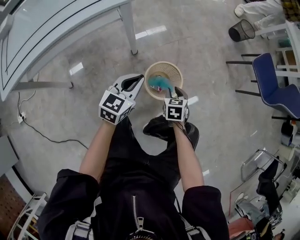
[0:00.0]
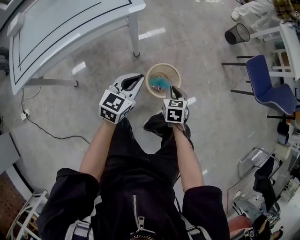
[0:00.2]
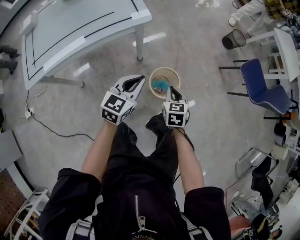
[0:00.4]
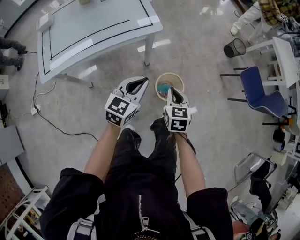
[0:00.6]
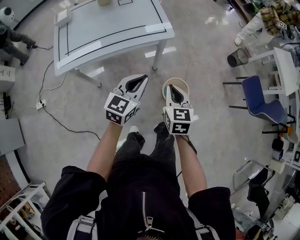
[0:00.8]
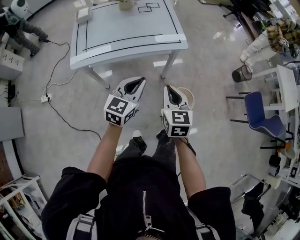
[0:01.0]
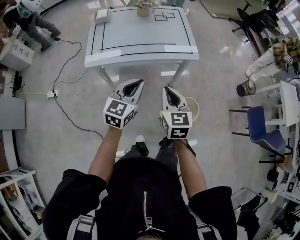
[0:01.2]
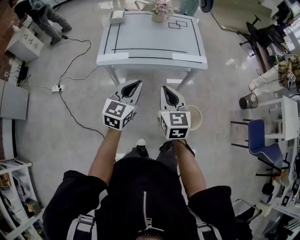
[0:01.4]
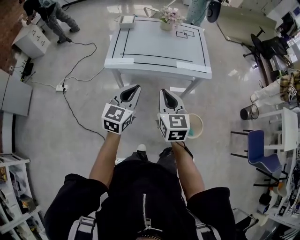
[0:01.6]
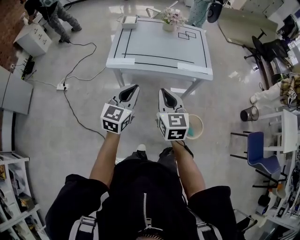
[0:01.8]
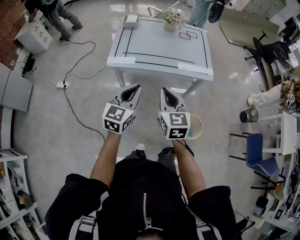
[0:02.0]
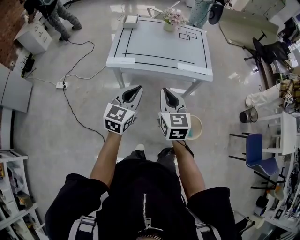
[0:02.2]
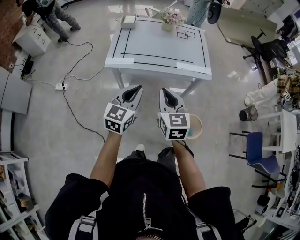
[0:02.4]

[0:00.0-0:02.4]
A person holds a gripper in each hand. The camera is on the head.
0:00.0 to 0:01.2: Both grippers move upward, roughly 50 cm. The right gripper angles its fingers upward, by approximately 30 degrees, and closes, while the left gripper swivels roughly 30 degrees.
0:01.2 to 0:02.4: Both grippers travel together to the left, roughly 10 cm.

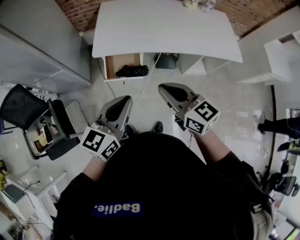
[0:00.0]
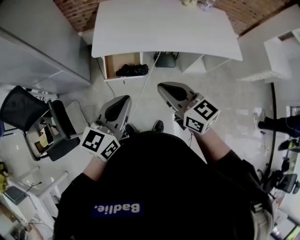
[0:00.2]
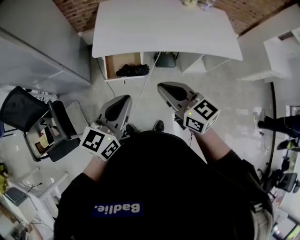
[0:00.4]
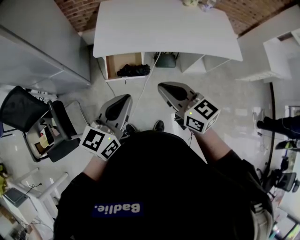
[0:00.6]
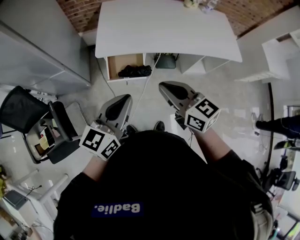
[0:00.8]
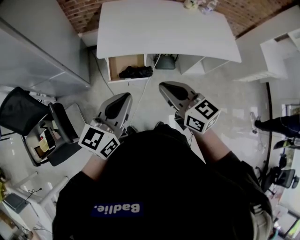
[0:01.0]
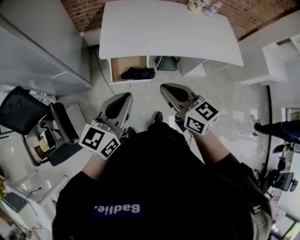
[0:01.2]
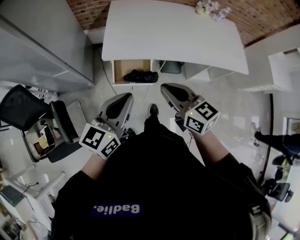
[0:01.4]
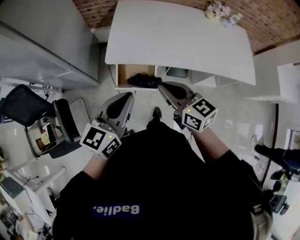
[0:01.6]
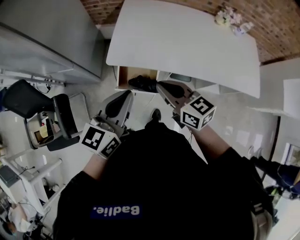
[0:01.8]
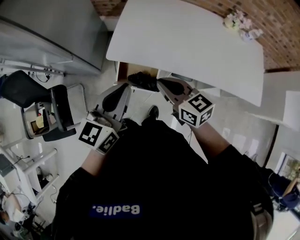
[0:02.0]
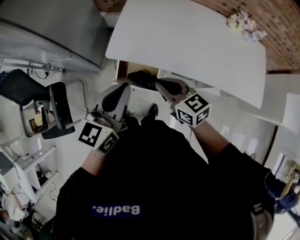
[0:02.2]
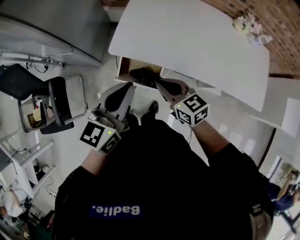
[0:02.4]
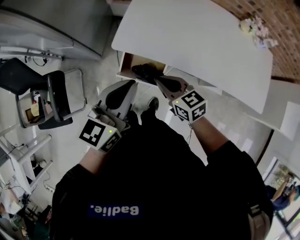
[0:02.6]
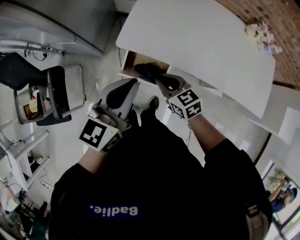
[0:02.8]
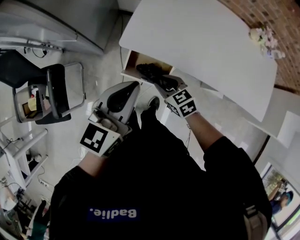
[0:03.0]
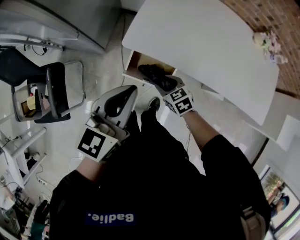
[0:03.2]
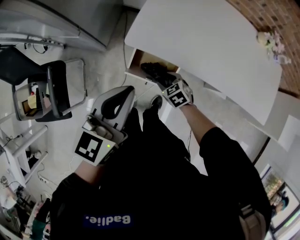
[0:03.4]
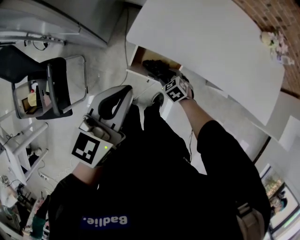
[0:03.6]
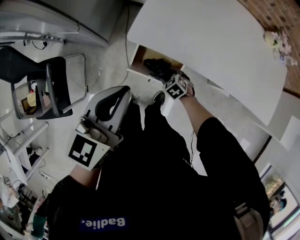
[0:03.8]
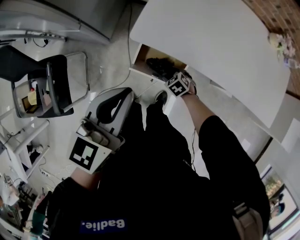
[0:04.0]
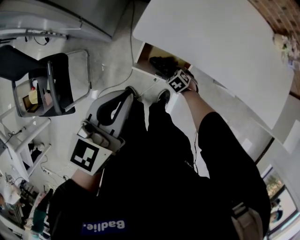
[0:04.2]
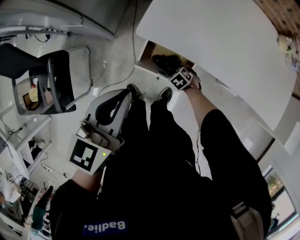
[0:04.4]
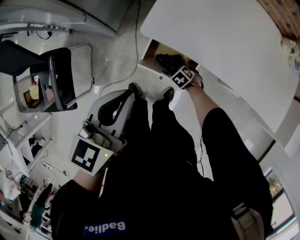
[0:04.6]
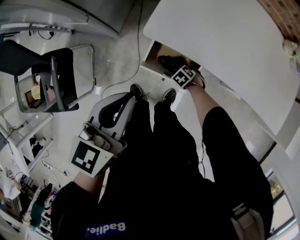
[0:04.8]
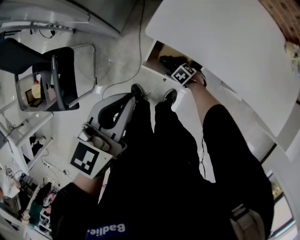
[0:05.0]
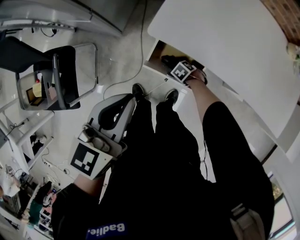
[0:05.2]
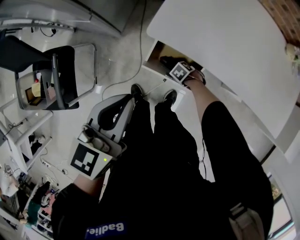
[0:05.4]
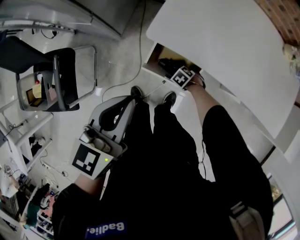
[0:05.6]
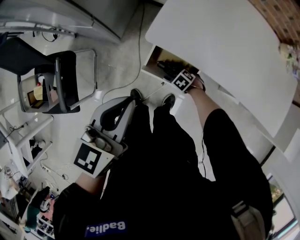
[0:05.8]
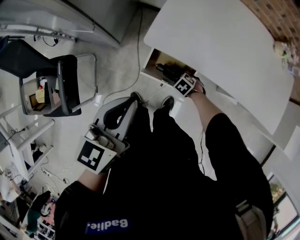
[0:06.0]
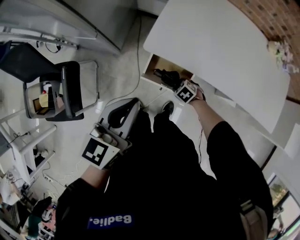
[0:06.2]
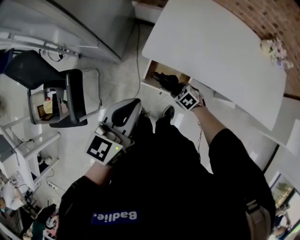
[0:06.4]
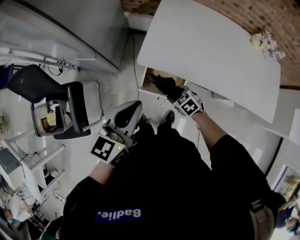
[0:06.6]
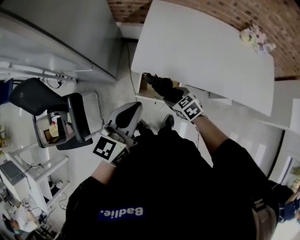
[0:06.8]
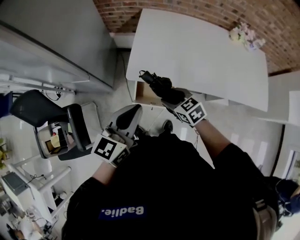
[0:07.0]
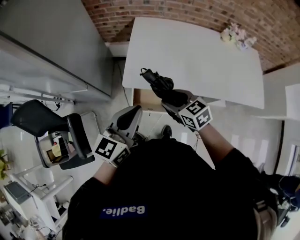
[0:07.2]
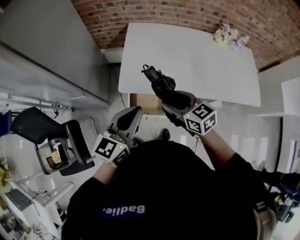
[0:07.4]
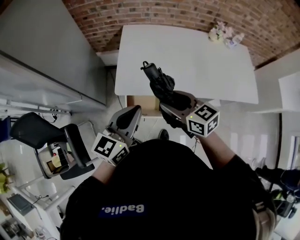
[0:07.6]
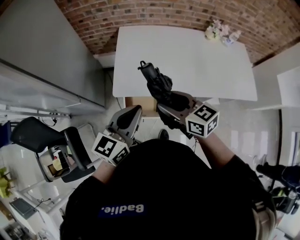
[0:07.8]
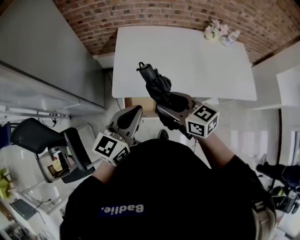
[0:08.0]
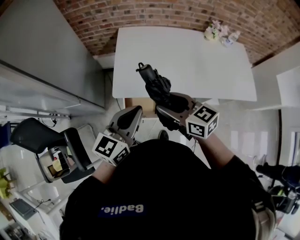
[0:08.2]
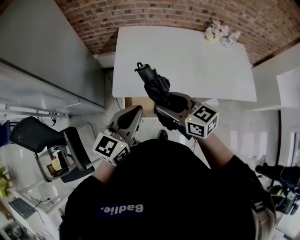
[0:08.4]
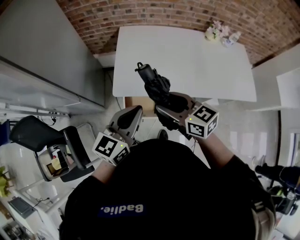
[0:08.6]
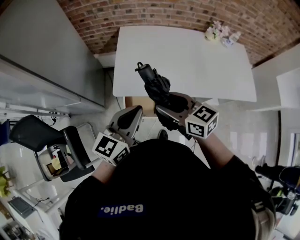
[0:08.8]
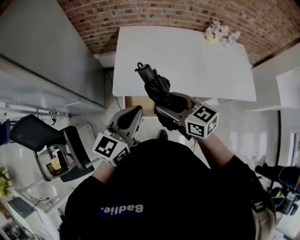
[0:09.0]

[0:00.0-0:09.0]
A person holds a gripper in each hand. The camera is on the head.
0:00.0 to 0:01.6: Both grippers move forward and to the left, roughly 15 cm.
0:01.6 to 0:03.0: The right gripper moves downward and forward, roughly 25 cm, angles its fingers downward, by approximately 30 degrees, and opens its fingers, while the left gripper goes roughly 15 cm forward and downward.
0:03.0 to 0:04.4: The left gripper shifts by about 10 cm. The right gripper is displaced downward by roughly 25 cm, points its fingers approximately 30 degrees further downward, and opens.
0:04.4 to 0:06.0: The grippers make only small movements.
0:06.0 to 0:07.6: The left gripper goes roughly 10 cm upward, and turns by some 30 degrees. Meanwhile the right gripper goes some 50 cm upward, and tips its fingers upward by approximately 60 degrees.
0:07.6 to 0:09.0: There are only small adjustments of the grippers.

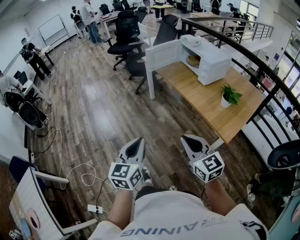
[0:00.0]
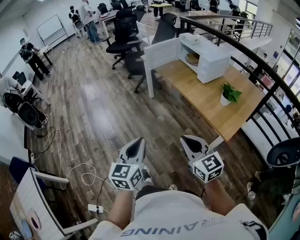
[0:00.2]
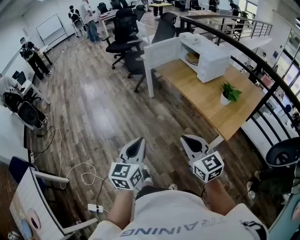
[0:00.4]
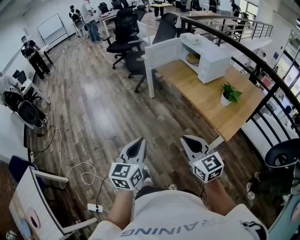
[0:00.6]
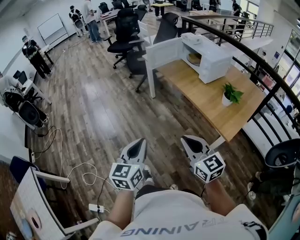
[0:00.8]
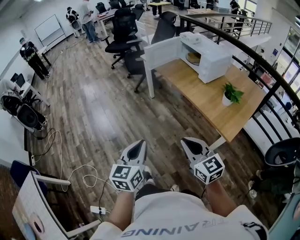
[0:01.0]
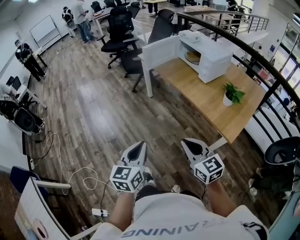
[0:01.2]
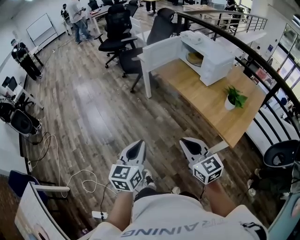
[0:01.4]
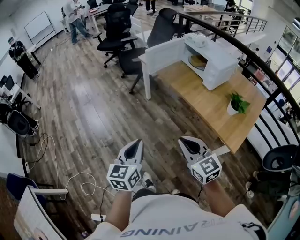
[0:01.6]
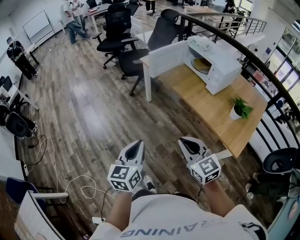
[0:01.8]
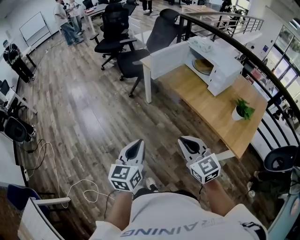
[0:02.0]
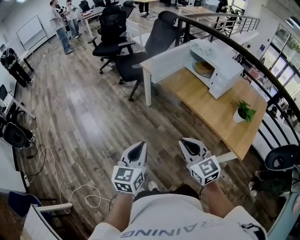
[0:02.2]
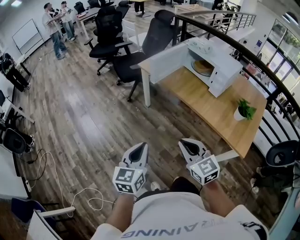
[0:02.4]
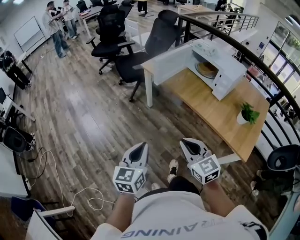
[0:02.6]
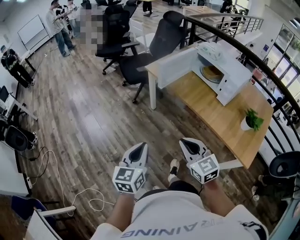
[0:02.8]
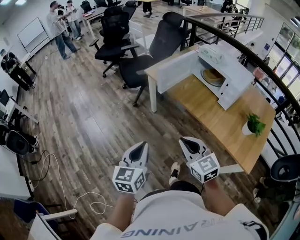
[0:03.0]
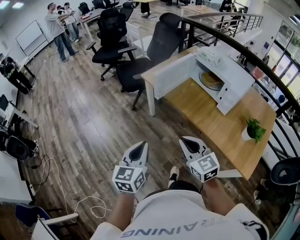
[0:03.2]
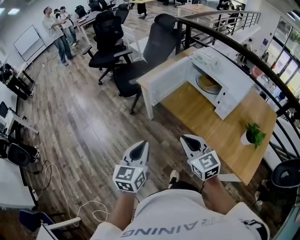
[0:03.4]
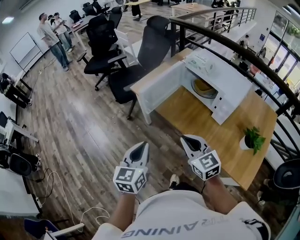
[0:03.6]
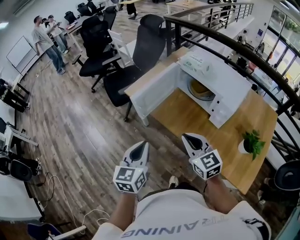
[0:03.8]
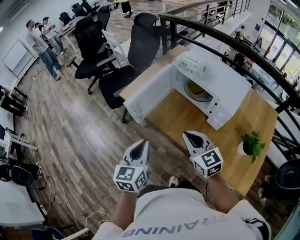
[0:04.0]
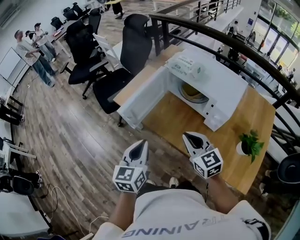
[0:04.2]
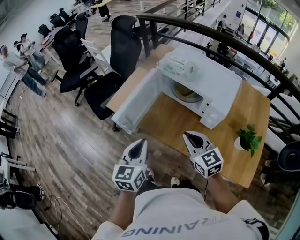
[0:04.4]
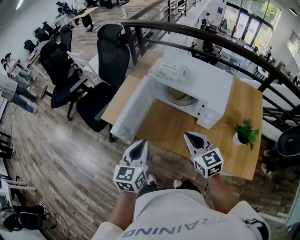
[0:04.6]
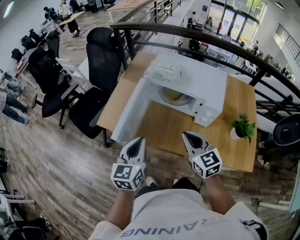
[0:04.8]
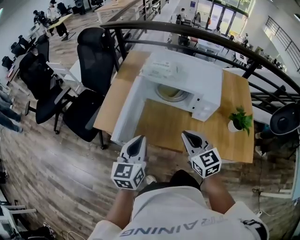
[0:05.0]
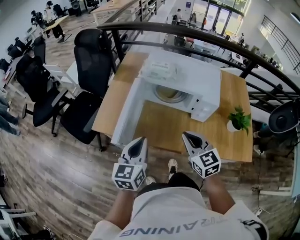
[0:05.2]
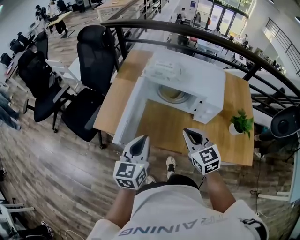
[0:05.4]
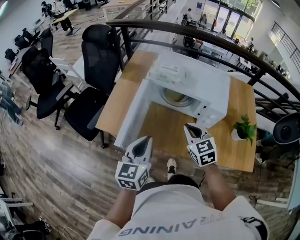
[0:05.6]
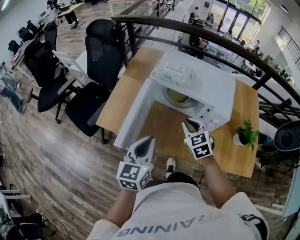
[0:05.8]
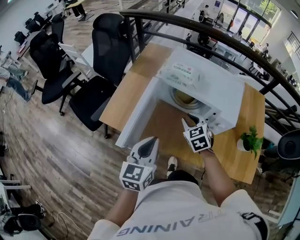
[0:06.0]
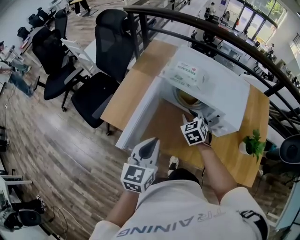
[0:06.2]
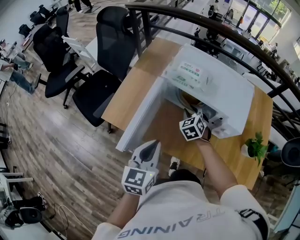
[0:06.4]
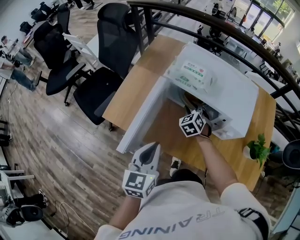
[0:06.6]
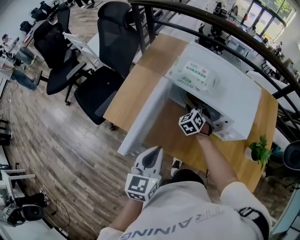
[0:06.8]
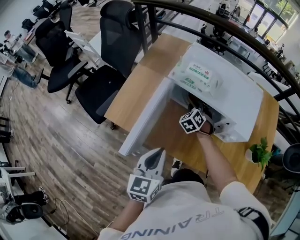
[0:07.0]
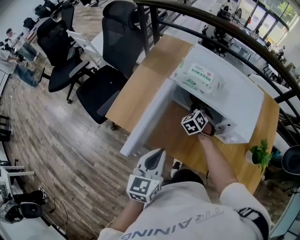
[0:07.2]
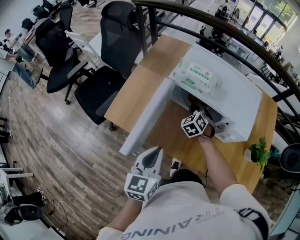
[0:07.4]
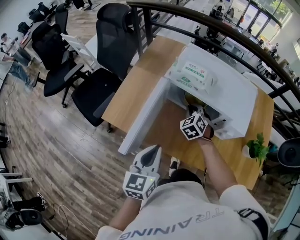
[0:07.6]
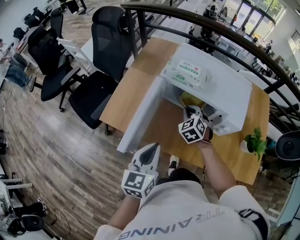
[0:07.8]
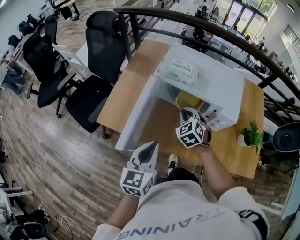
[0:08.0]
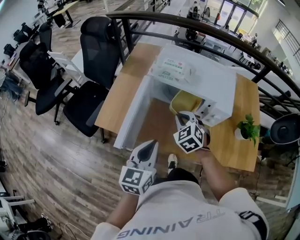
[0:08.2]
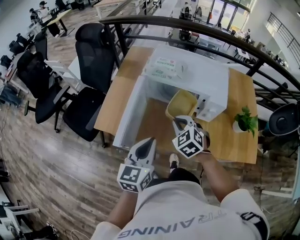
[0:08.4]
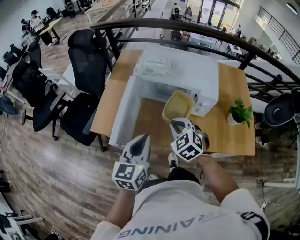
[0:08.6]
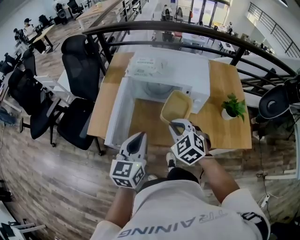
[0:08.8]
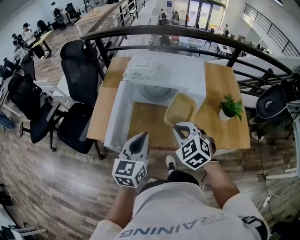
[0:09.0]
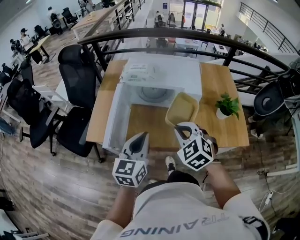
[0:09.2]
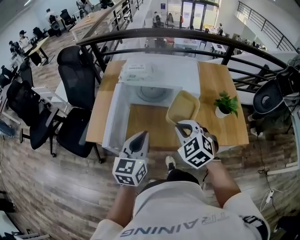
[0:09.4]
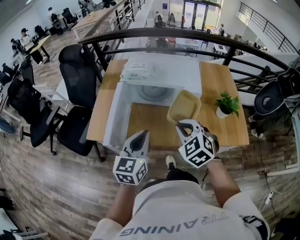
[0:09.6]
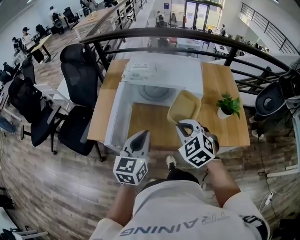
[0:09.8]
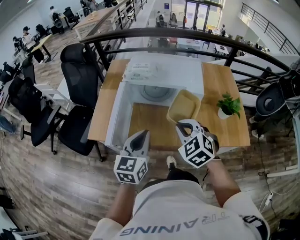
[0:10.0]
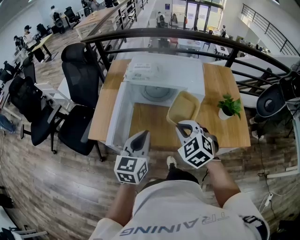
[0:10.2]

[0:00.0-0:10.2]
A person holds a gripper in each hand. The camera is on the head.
0:00.0 to 0:01.4: Both grippers move forward, roughly 10 cm.
0:01.4 to 0:03.0: The grippers both shift forward and to the left by about 30 cm.
0:03.0 to 0:04.4: Both grippers move forward and to the right, some 35 cm.
0:04.4 to 0:05.8: The left gripper heads forward, covering about 10 cm; the right gripper travels forward and downward by about 15 cm, and changes its angle by about 30 degrees.
0:05.8 to 0:07.2: The left gripper moves approximately 5 cm. The right gripper moves forward and downward, approximately 20 cm, and swivels roughly 30 degrees.
0:07.2 to 0:08.8: The left gripper heads upward, covering roughly 5 cm. Meanwhile the right gripper moves backward and upward, approximately 30 cm.
0:08.8 to 0:10.2: The right gripper ends up roughly 5 cm from where it was.

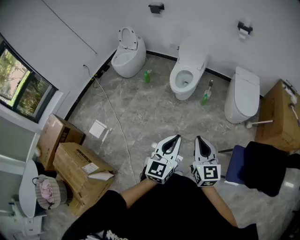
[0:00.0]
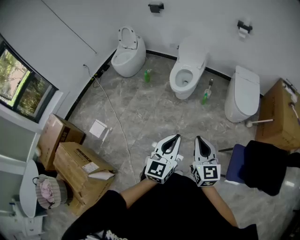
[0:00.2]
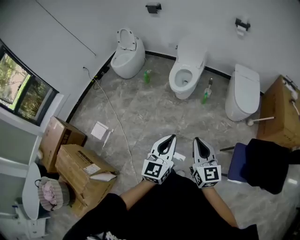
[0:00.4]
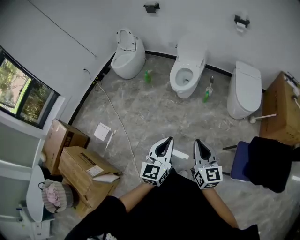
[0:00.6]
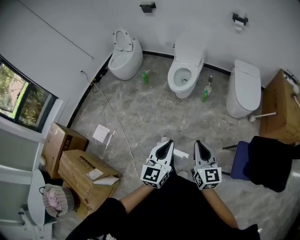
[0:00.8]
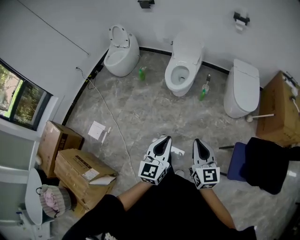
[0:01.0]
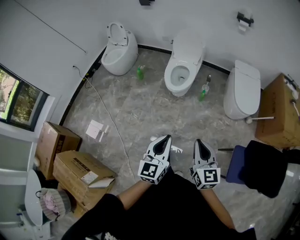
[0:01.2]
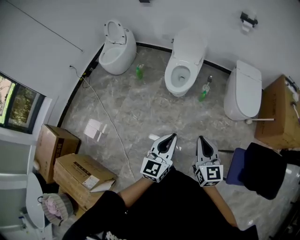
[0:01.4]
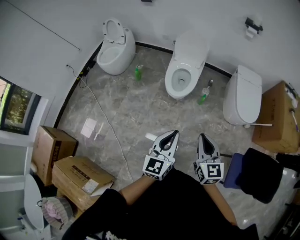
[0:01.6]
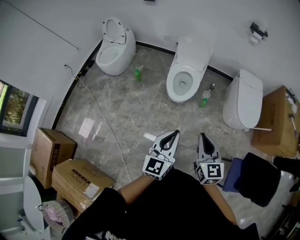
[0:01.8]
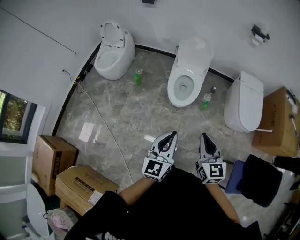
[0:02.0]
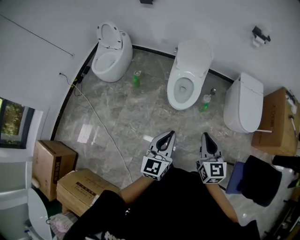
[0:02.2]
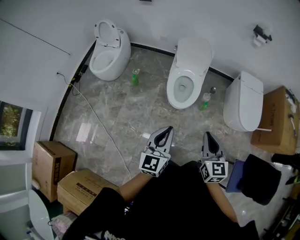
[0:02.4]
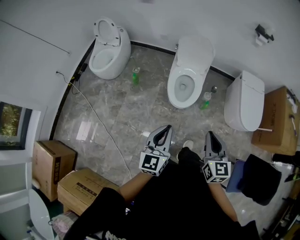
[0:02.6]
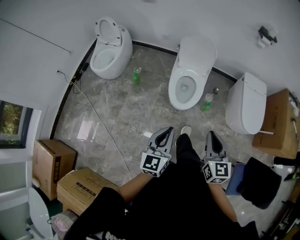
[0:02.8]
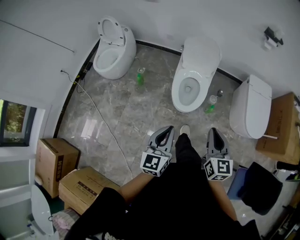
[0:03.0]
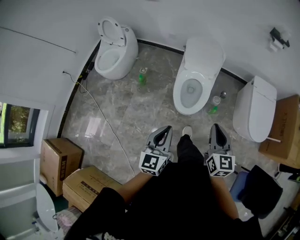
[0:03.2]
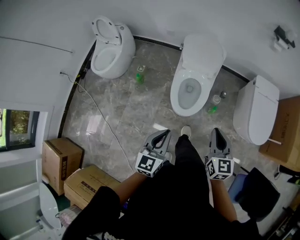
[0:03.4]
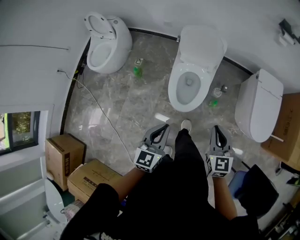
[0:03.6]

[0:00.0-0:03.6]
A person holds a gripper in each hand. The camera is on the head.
0:00.0 to 0:01.8: Both grippers move forward, roughly 30 cm.
0:01.8 to 0:03.6: The grippers both shift forward by approximately 35 cm.
